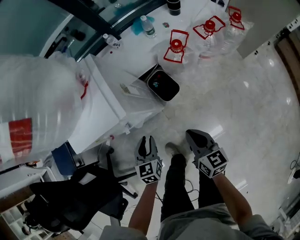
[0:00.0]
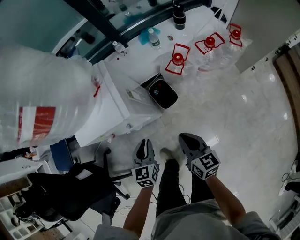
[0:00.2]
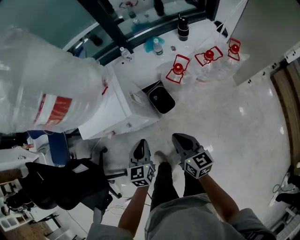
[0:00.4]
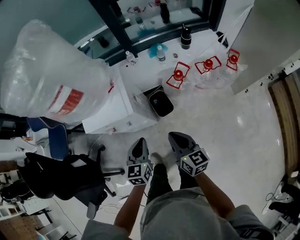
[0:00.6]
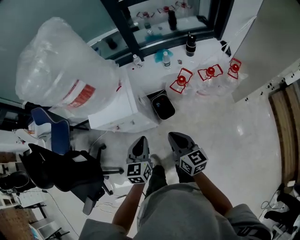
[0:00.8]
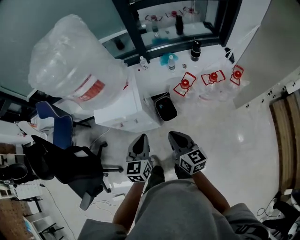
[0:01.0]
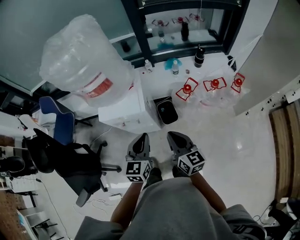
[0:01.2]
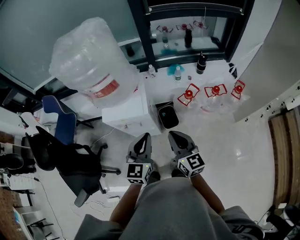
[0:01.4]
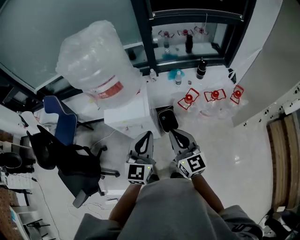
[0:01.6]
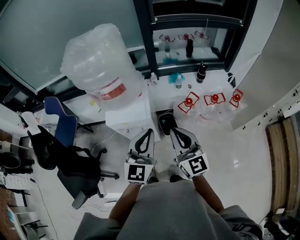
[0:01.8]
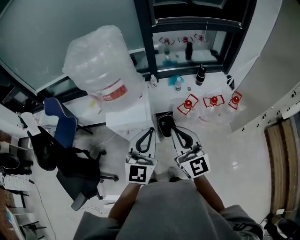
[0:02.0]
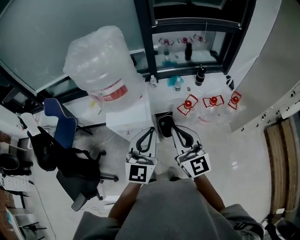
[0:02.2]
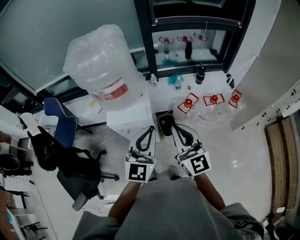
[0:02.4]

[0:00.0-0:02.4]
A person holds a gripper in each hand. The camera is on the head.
0:00.0 to 0:01.2: Both grippers travel together upward, about 30 cm. The left gripper closes up. Meanwhile the right gripper turns by some 20 degrees.
0:01.2 to 0:02.4: Both grippers move upward, some 15 cm. The right gripper rotates some 30 degrees, while the left gripper swivels approximately 20 degrees.

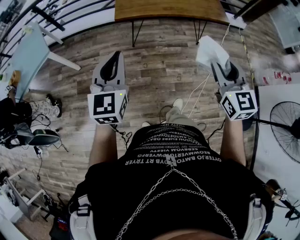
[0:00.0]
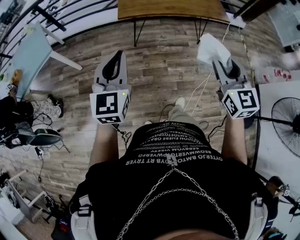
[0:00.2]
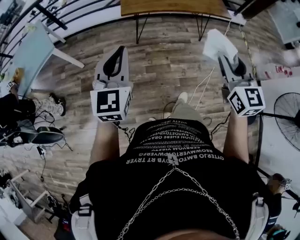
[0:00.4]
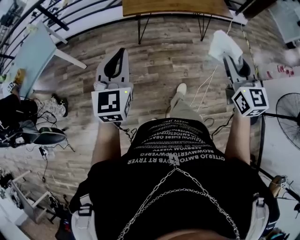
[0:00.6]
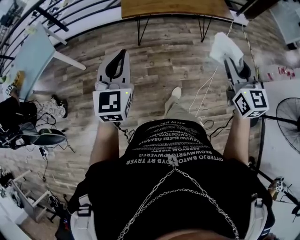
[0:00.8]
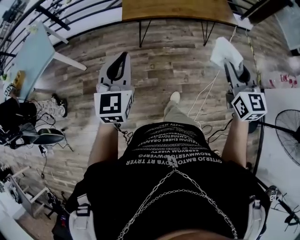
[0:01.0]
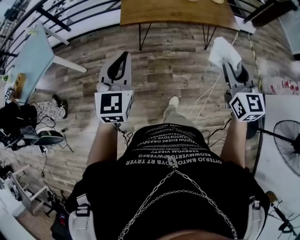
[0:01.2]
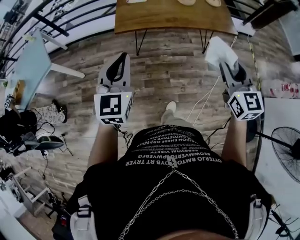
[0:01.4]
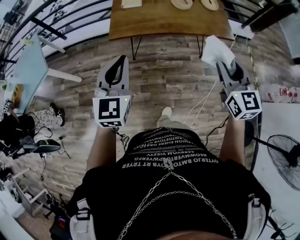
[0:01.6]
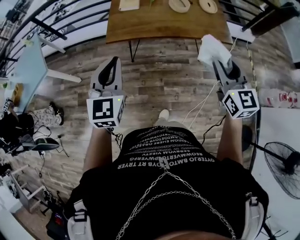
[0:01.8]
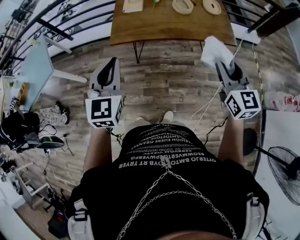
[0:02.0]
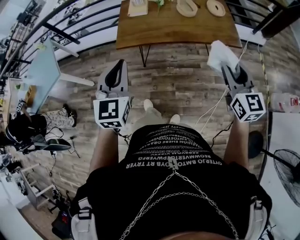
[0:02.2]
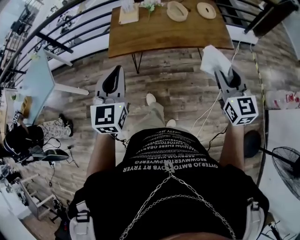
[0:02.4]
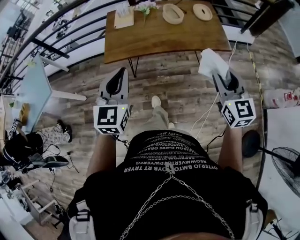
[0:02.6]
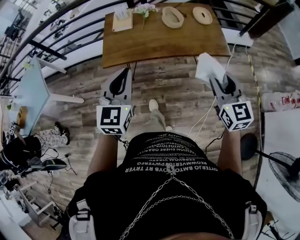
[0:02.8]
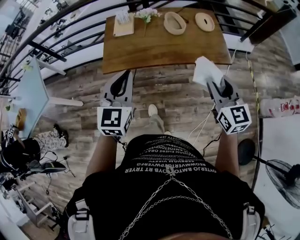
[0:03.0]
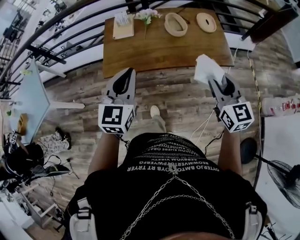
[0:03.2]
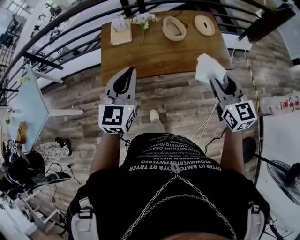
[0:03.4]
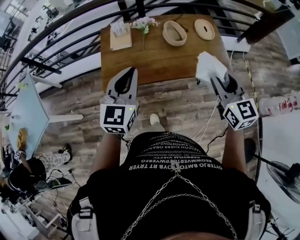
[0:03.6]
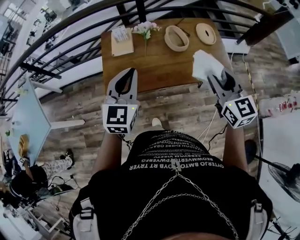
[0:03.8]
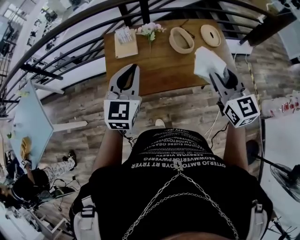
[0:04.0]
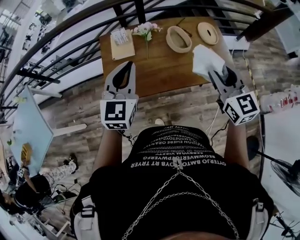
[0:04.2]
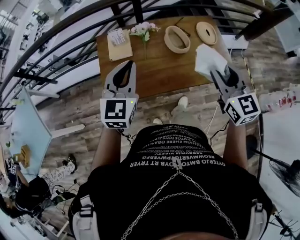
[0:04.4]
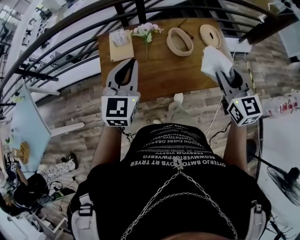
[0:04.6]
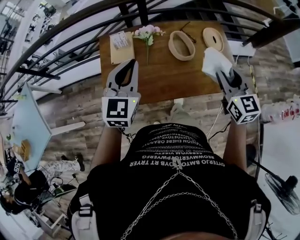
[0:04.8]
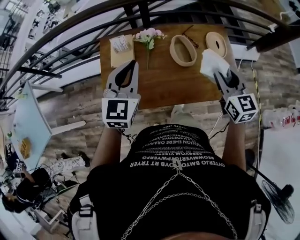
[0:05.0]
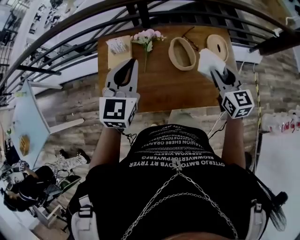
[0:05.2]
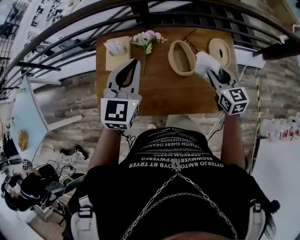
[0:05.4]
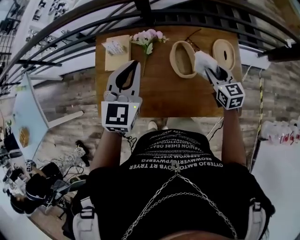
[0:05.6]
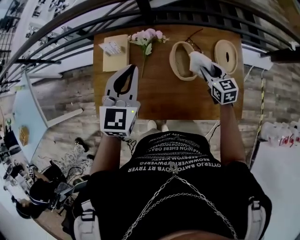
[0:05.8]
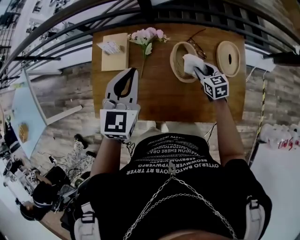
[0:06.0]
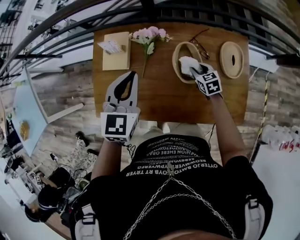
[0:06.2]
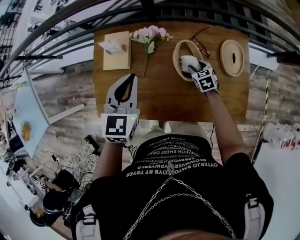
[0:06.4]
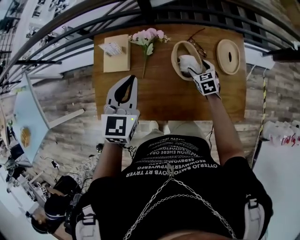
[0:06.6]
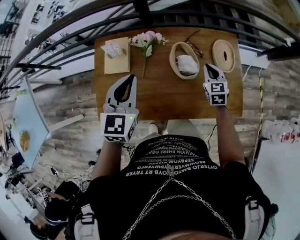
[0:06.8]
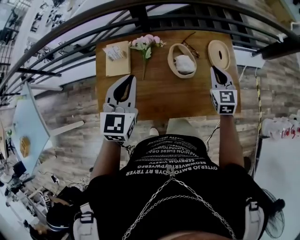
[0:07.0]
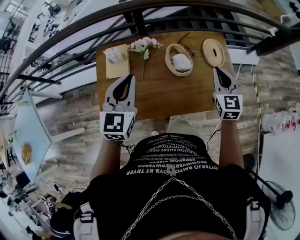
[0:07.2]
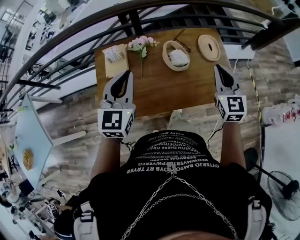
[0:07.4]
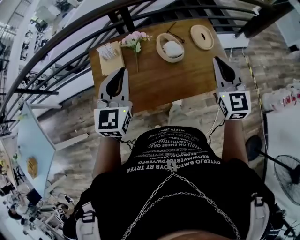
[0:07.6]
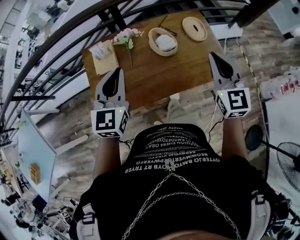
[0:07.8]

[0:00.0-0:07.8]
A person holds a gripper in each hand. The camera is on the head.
0:00.0 to 0:01.6: Both grippers travel together forward and to the right, roughly 20 cm.
0:01.6 to 0:03.2: Both grippers travel together forward, about 20 cm.
0:03.2 to 0:04.6: The two grippers go some 20 cm forward.
0:04.6 to 0:06.2: The right gripper moves downward and forward, roughly 50 cm, and angles its fingers downward, by roughly 30 degrees; the left gripper heads forward, downward and to the right, covering roughly 20 cm, and rotates roughly 20 degrees.
0:06.2 to 0:07.8: The right gripper goes approximately 35 cm upward, tips its fingers upward by approximately 40 degrees, and closes its fingers. The left gripper shifts by approximately 15 cm, and changes its angle by some 20 degrees.

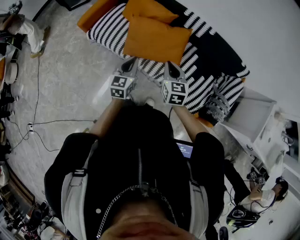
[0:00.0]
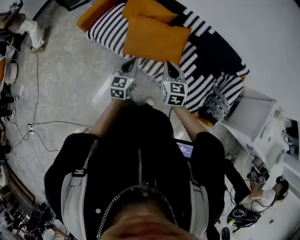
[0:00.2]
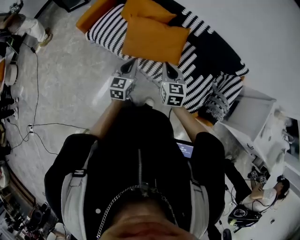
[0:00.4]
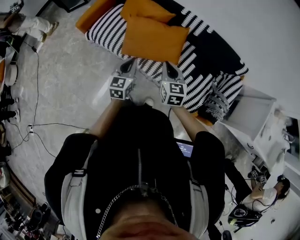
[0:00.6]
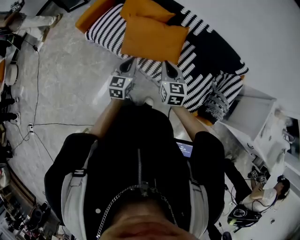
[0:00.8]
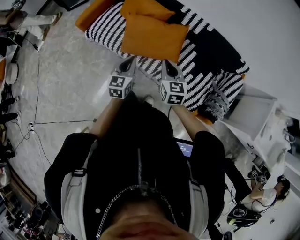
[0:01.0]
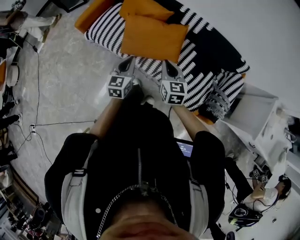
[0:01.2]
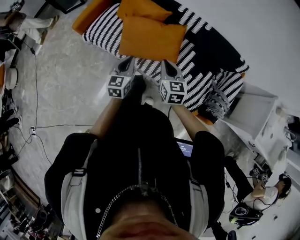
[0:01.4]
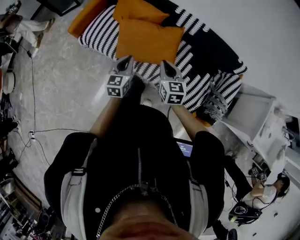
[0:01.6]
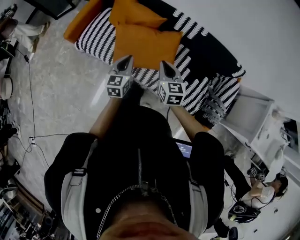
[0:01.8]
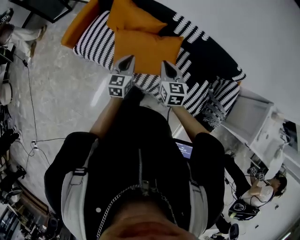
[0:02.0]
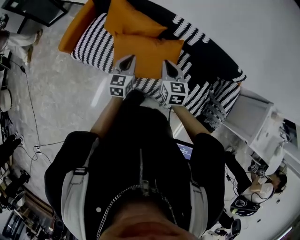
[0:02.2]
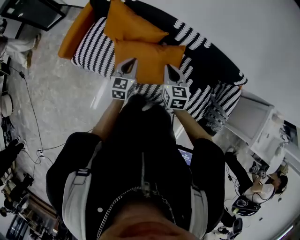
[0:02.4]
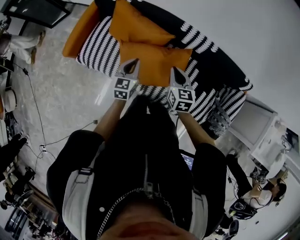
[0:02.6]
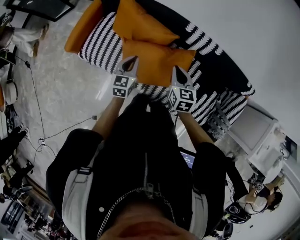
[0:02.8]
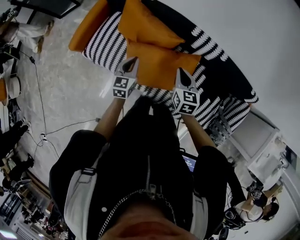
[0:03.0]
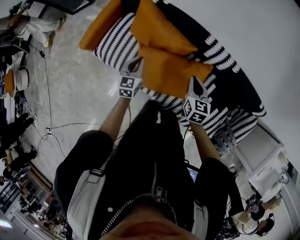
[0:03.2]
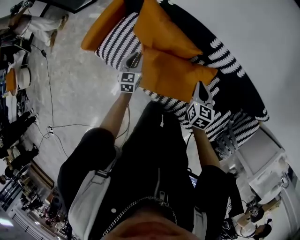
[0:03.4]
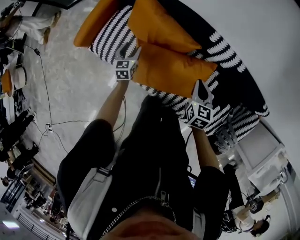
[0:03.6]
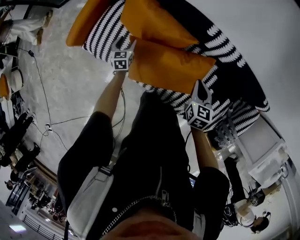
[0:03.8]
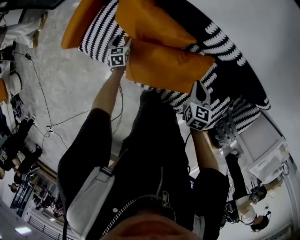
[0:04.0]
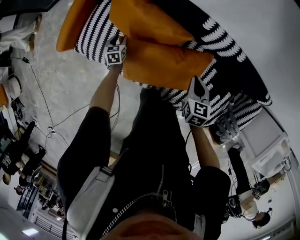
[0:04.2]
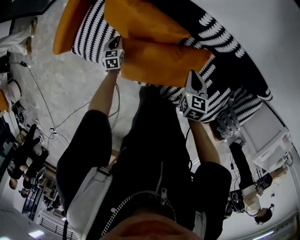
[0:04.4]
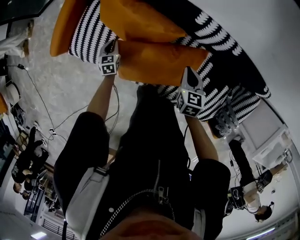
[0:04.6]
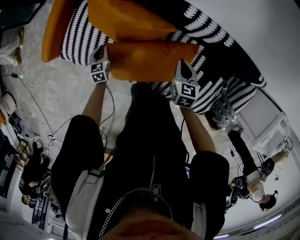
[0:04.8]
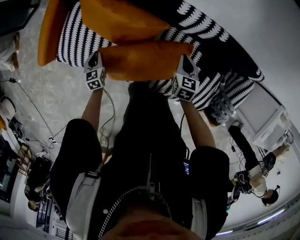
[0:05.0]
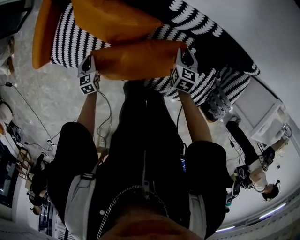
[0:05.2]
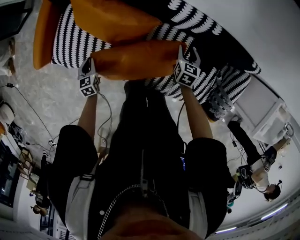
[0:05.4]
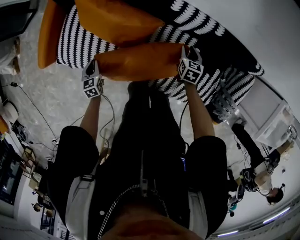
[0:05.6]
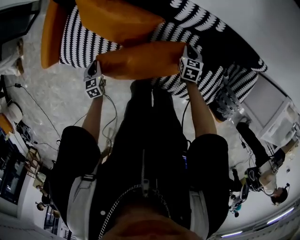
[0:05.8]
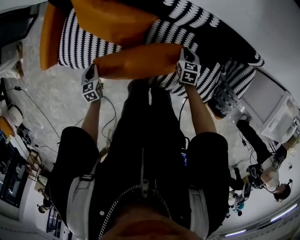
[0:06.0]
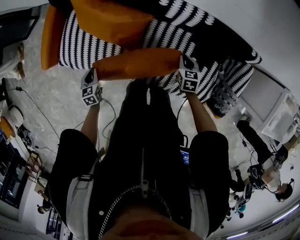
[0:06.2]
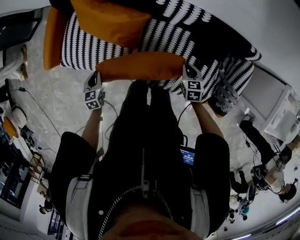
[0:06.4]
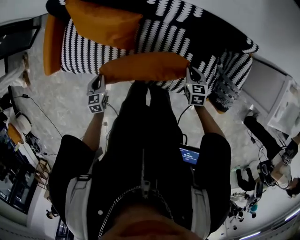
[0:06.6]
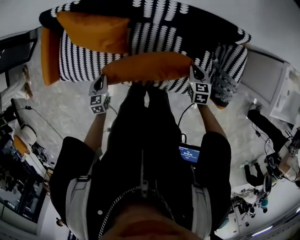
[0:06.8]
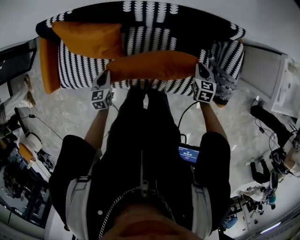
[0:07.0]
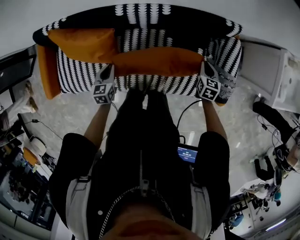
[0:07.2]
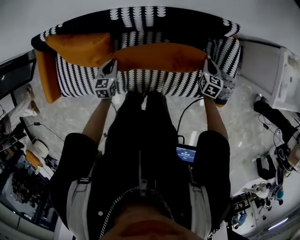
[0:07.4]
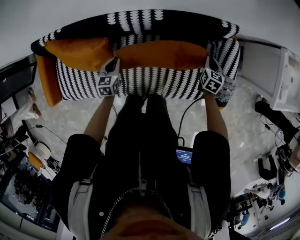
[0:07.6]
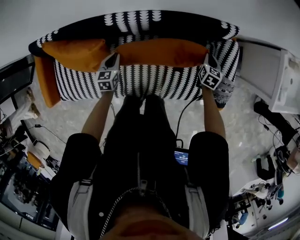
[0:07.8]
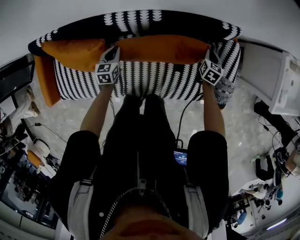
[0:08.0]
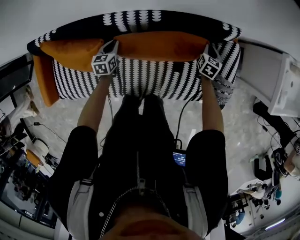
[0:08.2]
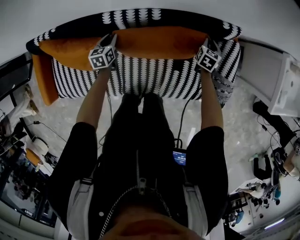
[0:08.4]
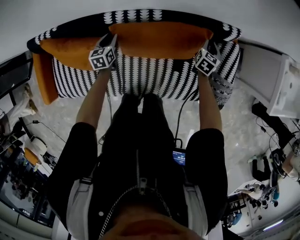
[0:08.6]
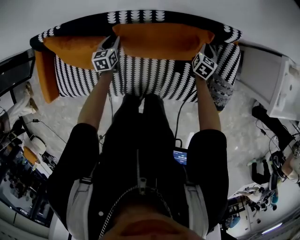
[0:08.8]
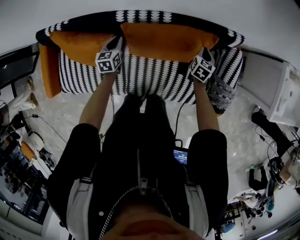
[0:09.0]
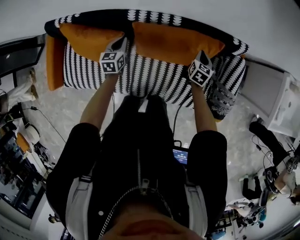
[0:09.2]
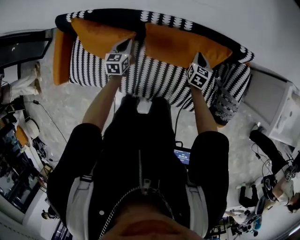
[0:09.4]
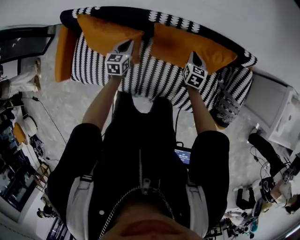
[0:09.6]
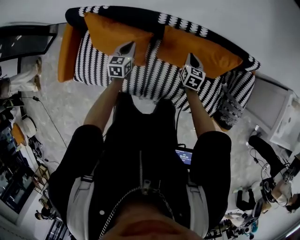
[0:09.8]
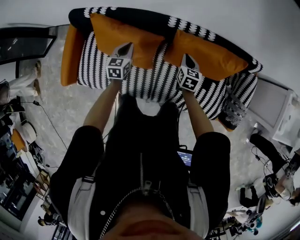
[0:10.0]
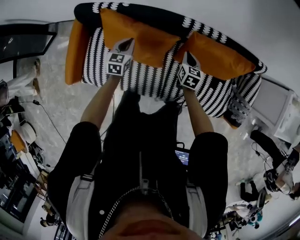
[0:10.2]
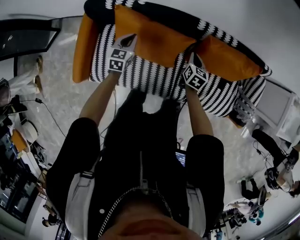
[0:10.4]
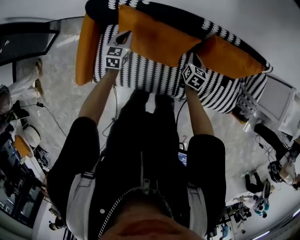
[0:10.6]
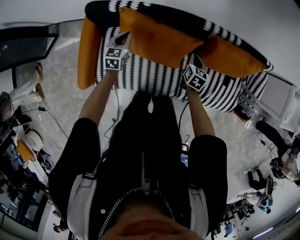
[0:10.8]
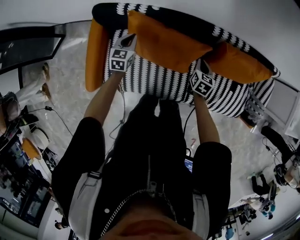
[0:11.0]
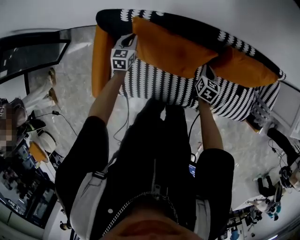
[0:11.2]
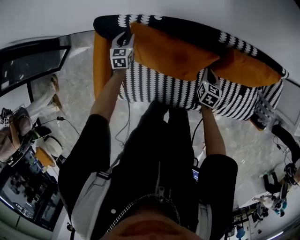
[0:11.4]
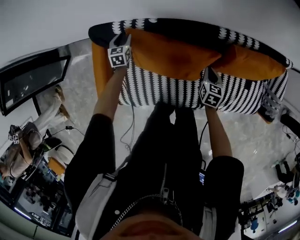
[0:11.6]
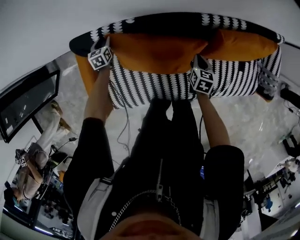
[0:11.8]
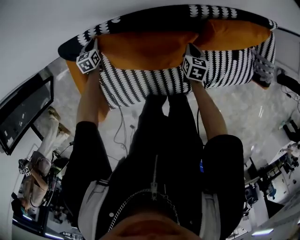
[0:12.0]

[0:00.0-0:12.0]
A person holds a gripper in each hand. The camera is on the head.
0:00.0 to 0:01.6: The left gripper travels forward by roughly 5 cm.
0:01.6 to 0:03.0: Both grippers move forward, about 25 cm.
0:03.0 to 0:04.4: The right gripper is displaced downward and to the right by approximately 15 cm, while the left gripper heads downward and forward, covering approximately 30 cm, turns by some 20 degrees, and opens and closes again.
0:04.4 to 0:06.0: The right gripper shifts roughly 15 cm to the right and downward, and opens, then closes once more. Meanwhile the left gripper is displaced backward and upward by roughly 15 cm.
0:06.0 to 0:07.6: The right gripper changes place by about 35 cm, and changes its angle by approximately 30 degrees, while the left gripper moves approximately 40 cm, and changes its angle by roughly 30 degrees.
0:07.6 to 0:09.0: The left gripper moves forward, roughly 10 cm. Meanwhile the right gripper travels to the left and forward by about 10 cm.
0:09.0 to 0:10.4: Both grippers move to the left, about 40 cm.
0:10.4 to 0:12.0: The right gripper shifts about 10 cm downward, to the left and forward. Meanwhile the left gripper heads to the left, forward and downward, covering approximately 35 cm, and opens, then closes once more.

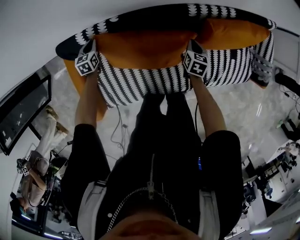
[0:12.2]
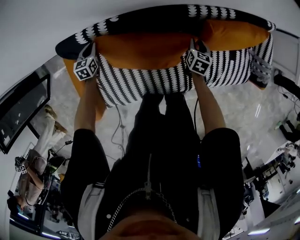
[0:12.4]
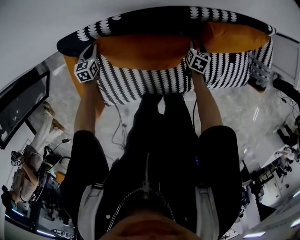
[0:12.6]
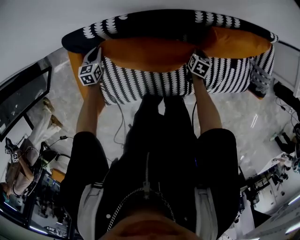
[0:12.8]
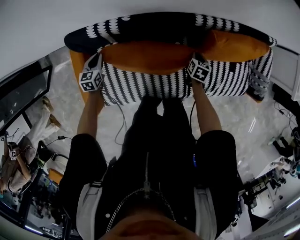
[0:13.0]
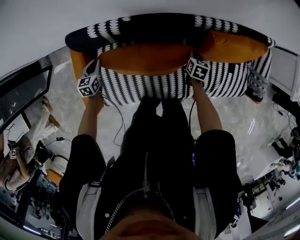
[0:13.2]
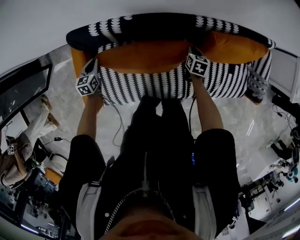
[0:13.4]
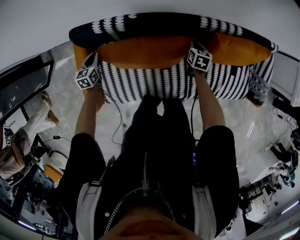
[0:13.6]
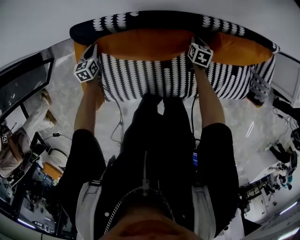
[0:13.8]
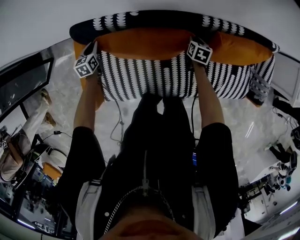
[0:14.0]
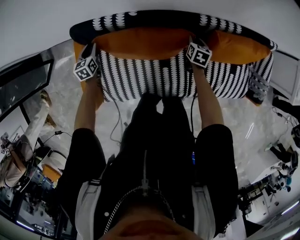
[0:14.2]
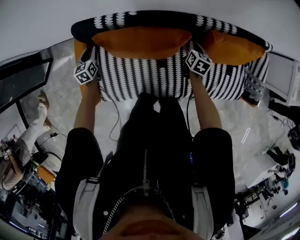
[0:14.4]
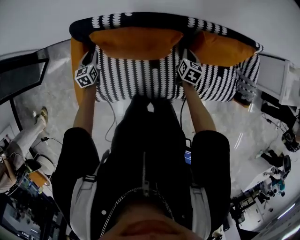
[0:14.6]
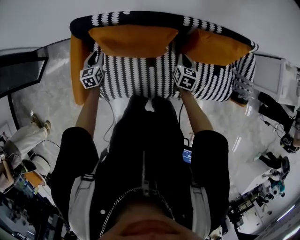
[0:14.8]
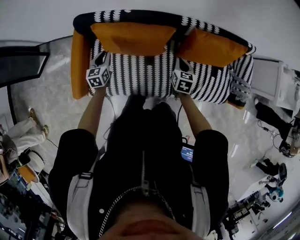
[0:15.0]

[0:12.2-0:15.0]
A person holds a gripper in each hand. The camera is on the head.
0:12.2 to 0:13.6: The right gripper opens and closes again, while the left gripper is displaced backward and upward by some 15 cm.
0:13.6 to 0:15.0: The left gripper moves to the right, backward and upward, roughly 25 cm. The right gripper shifts about 25 cm backward and upward.
